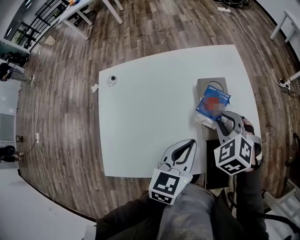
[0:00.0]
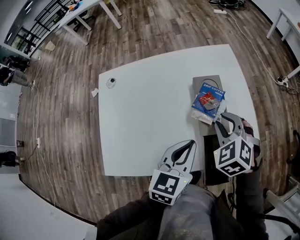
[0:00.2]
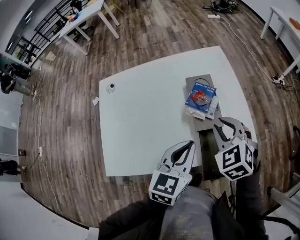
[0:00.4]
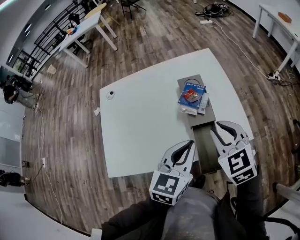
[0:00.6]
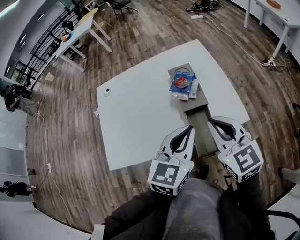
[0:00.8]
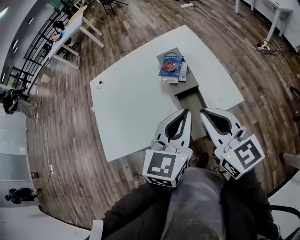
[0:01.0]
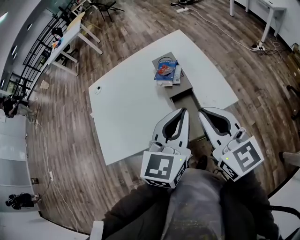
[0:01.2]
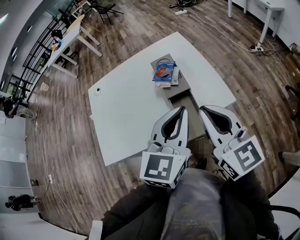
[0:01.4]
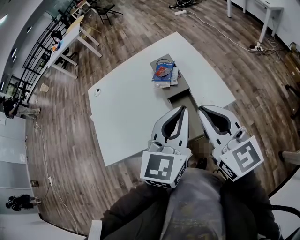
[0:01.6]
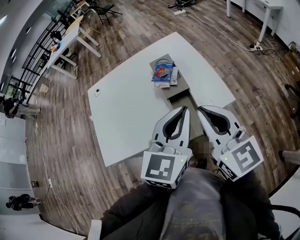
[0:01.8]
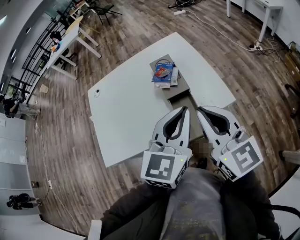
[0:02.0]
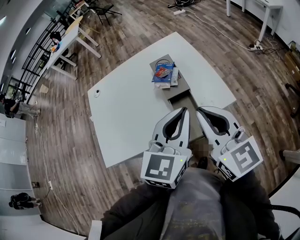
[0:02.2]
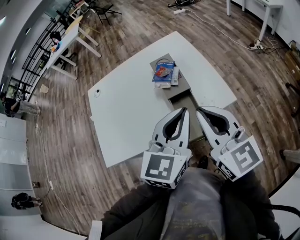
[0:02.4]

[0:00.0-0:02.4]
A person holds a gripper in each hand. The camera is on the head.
0:00.0 to 0:01.2: The right gripper moves backward and upward, about 25 cm, and points its fingers roughly 50 degrees further upward, while the left gripper is displaced backward, upward and to the right by some 20 cm, and swivels some 20 degrees.
0:01.2 to 0:02.4: The grippers move only a little.

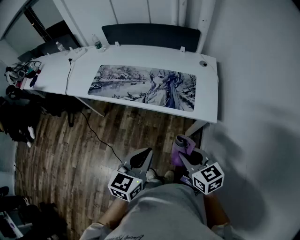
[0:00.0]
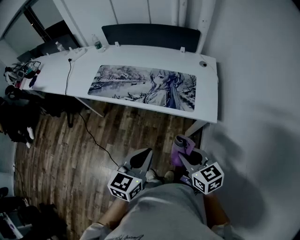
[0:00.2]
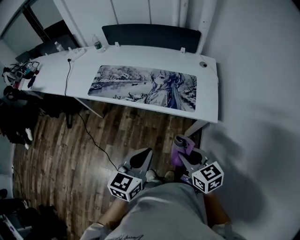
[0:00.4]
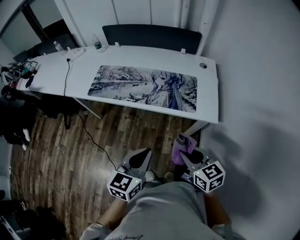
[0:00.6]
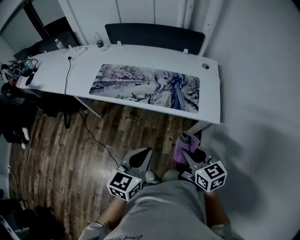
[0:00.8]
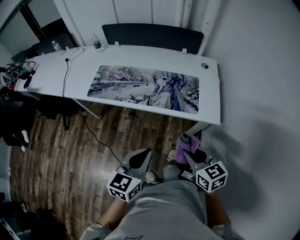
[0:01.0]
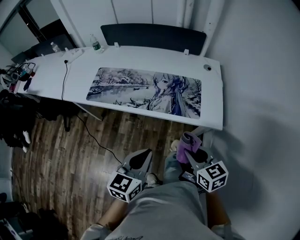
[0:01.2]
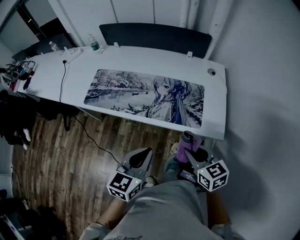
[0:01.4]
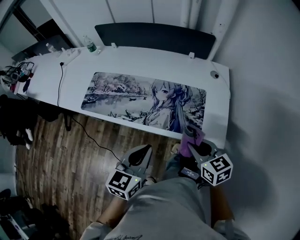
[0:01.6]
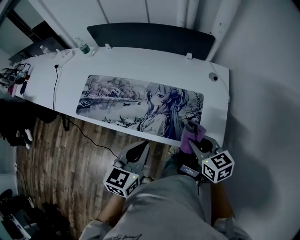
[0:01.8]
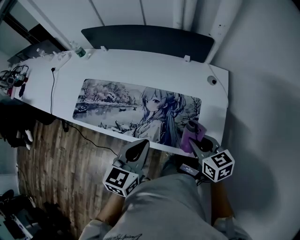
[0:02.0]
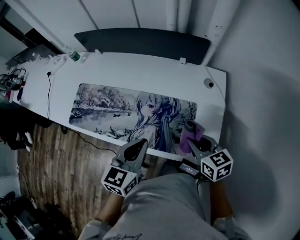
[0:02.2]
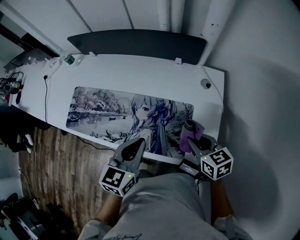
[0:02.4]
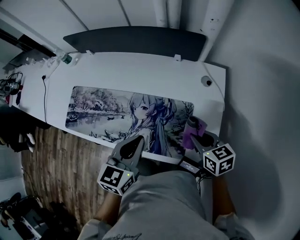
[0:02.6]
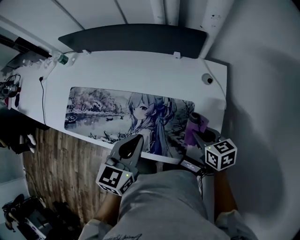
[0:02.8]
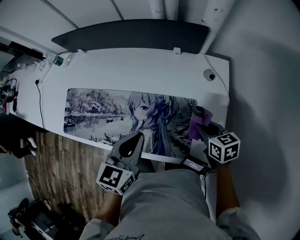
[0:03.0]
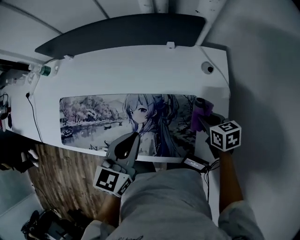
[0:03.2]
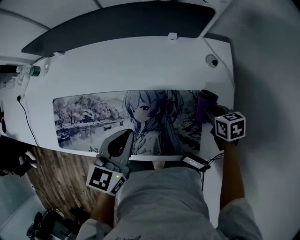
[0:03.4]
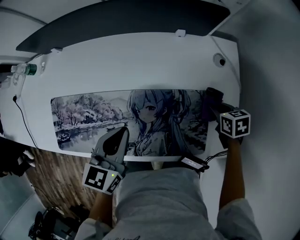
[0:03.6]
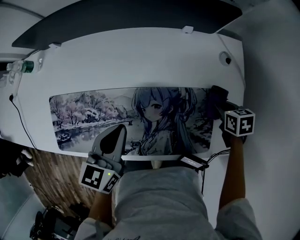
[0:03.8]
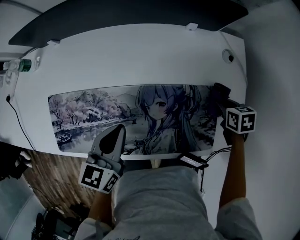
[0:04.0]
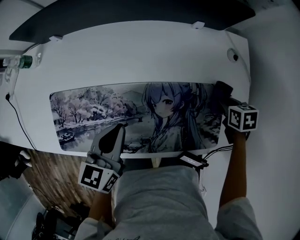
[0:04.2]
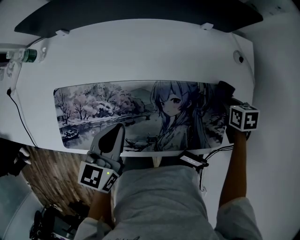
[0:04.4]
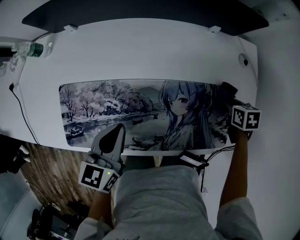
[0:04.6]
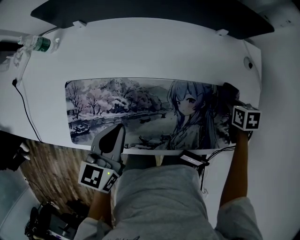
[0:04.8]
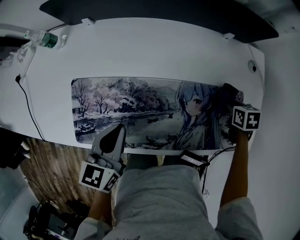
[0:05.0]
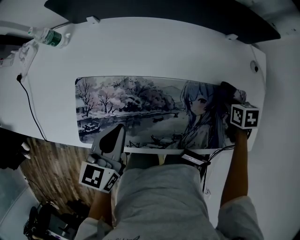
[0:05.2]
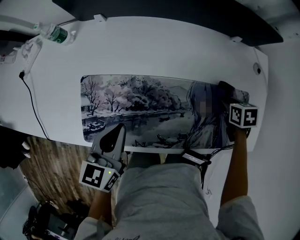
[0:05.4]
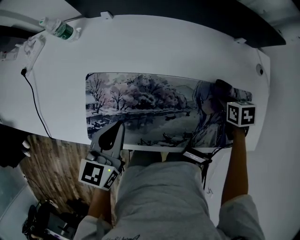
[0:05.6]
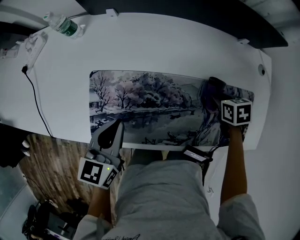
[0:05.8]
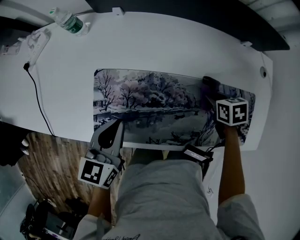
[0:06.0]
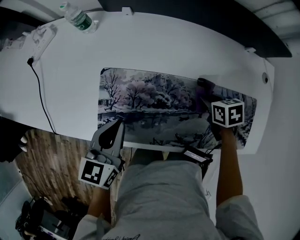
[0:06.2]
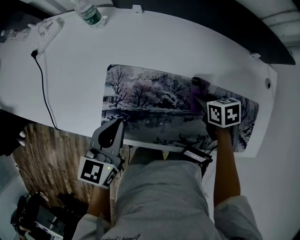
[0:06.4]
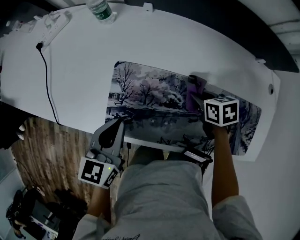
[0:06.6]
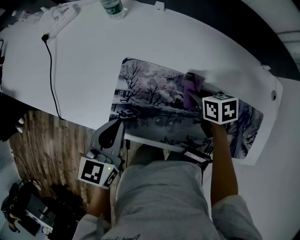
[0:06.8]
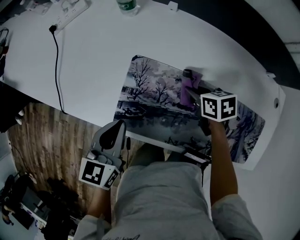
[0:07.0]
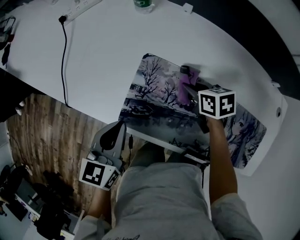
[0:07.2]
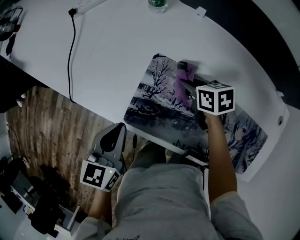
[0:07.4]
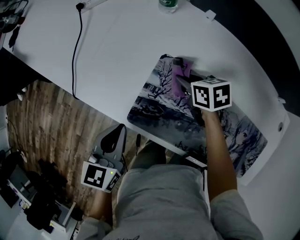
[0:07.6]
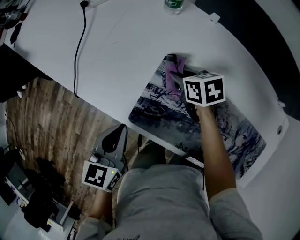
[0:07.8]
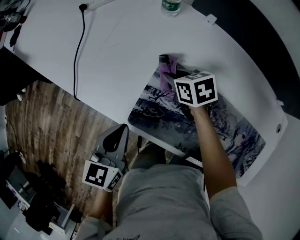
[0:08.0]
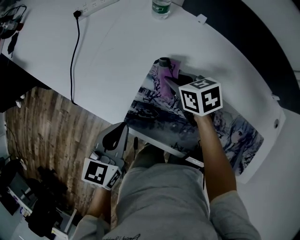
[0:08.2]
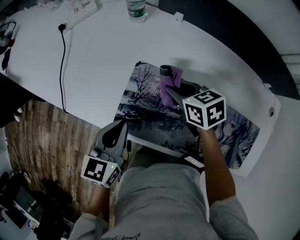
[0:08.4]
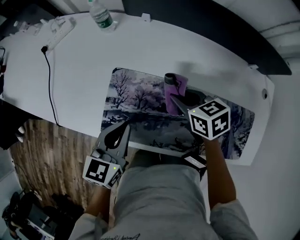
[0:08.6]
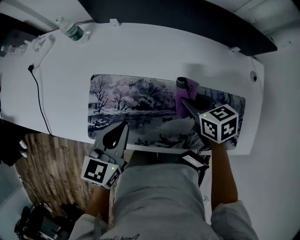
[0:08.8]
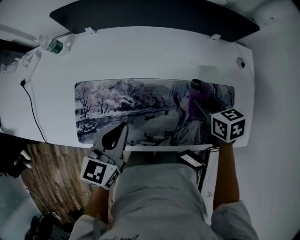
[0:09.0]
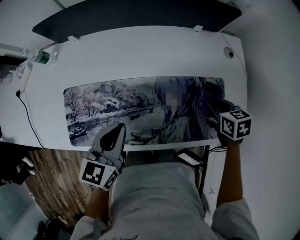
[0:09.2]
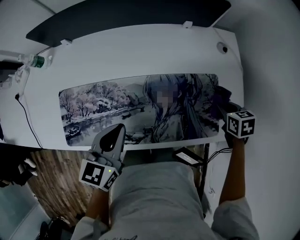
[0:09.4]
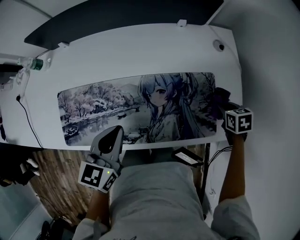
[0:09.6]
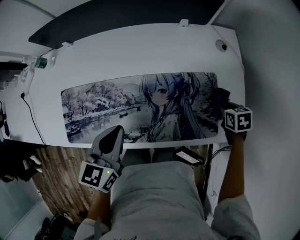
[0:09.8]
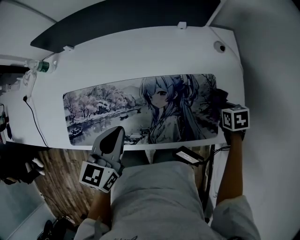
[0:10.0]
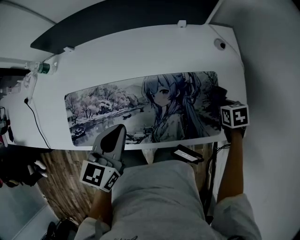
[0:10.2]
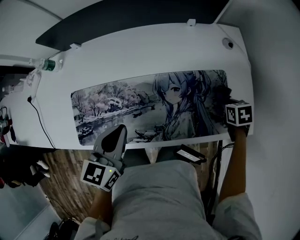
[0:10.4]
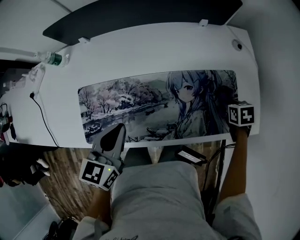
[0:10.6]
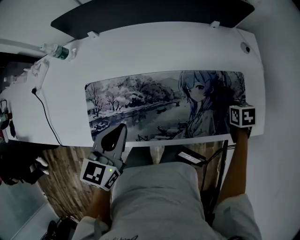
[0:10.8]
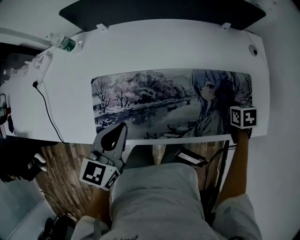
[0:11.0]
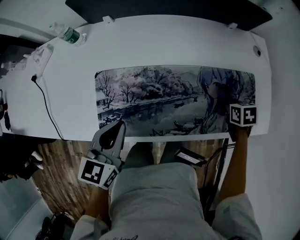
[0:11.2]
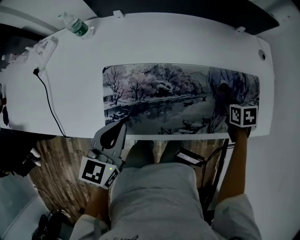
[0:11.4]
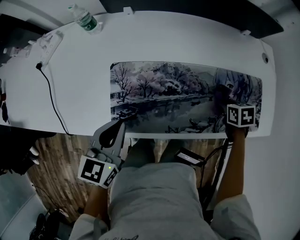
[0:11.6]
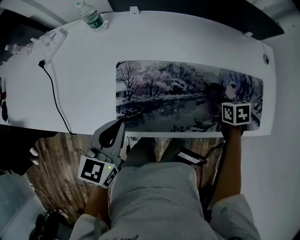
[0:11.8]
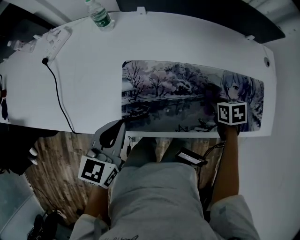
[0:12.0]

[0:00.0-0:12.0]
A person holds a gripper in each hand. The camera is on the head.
0:00.0 to 0:01.6: The two grippers go some 20 cm forward.
0:01.6 to 0:03.0: The left gripper shifts some 25 cm forward and to the right. The right gripper goes about 25 cm forward, to the right and downward, and turns by about 20 degrees.
0:03.0 to 0:04.4: The right gripper goes roughly 10 cm downward and forward, and swivels roughly 30 degrees; the left gripper shifts approximately 20 cm to the left.
0:04.4 to 0:06.0: Both grippers travel together to the left, approximately 25 cm.
0:06.0 to 0:07.6: The right gripper changes place by roughly 35 cm, and turns by approximately 30 degrees. The left gripper shifts by roughly 20 cm, and rotates about 20 degrees.
0:07.6 to 0:09.0: The left gripper shifts by roughly 30 cm, and changes its angle by about 30 degrees. Meanwhile the right gripper shifts by roughly 40 cm, and changes its angle by roughly 30 degrees.
0:09.0 to 0:10.4: The left gripper moves to the right, about 10 cm; the right gripper is displaced to the right and downward by some 25 cm, and rotates some 20 degrees.
0:10.4 to 0:12.0: The two grippers go about 35 cm to the left.

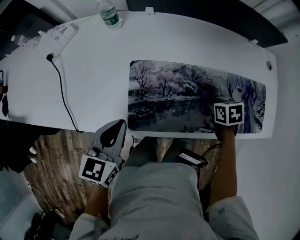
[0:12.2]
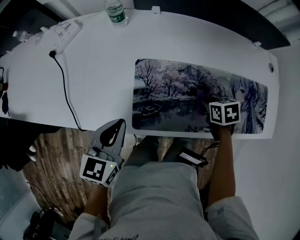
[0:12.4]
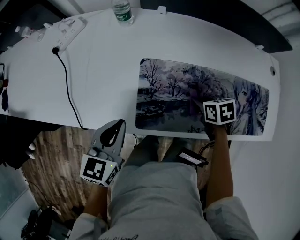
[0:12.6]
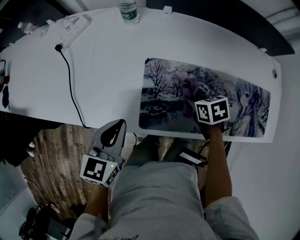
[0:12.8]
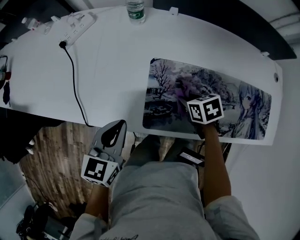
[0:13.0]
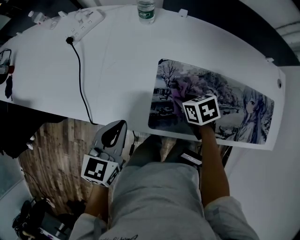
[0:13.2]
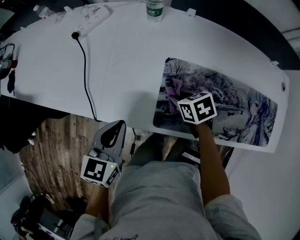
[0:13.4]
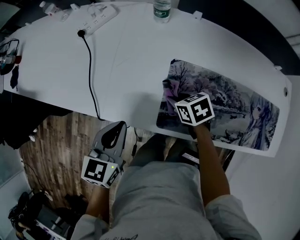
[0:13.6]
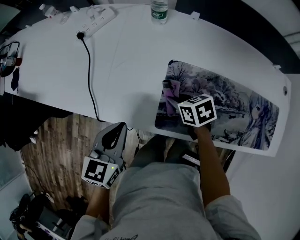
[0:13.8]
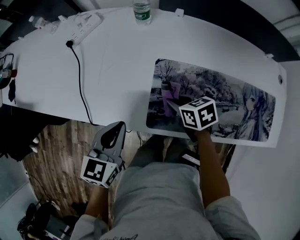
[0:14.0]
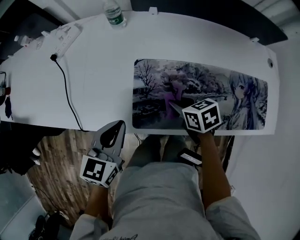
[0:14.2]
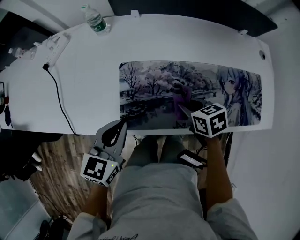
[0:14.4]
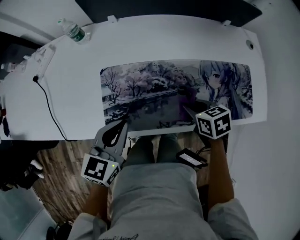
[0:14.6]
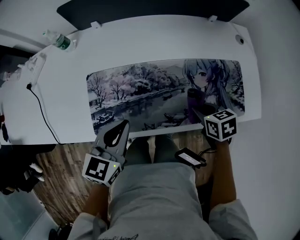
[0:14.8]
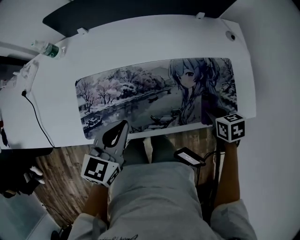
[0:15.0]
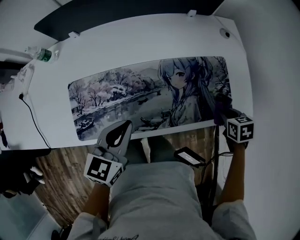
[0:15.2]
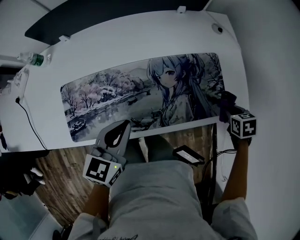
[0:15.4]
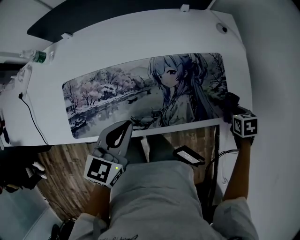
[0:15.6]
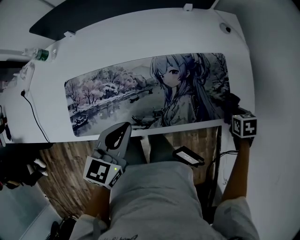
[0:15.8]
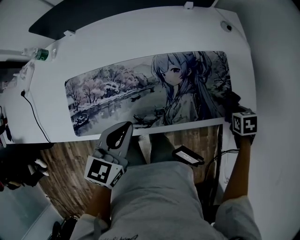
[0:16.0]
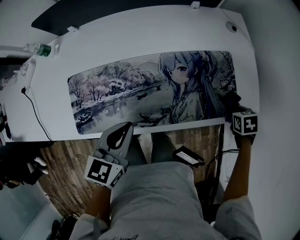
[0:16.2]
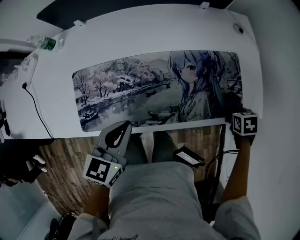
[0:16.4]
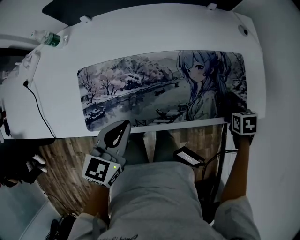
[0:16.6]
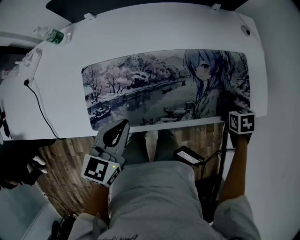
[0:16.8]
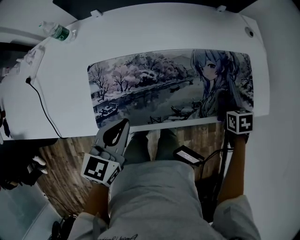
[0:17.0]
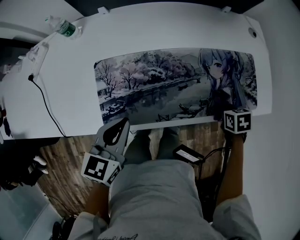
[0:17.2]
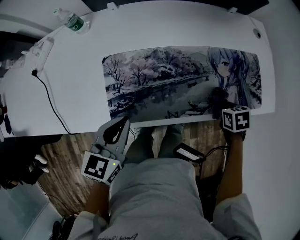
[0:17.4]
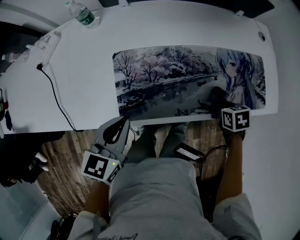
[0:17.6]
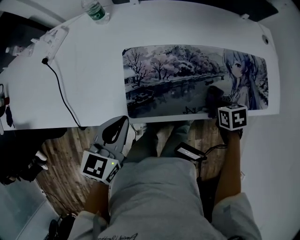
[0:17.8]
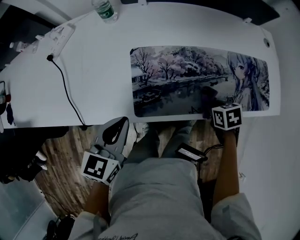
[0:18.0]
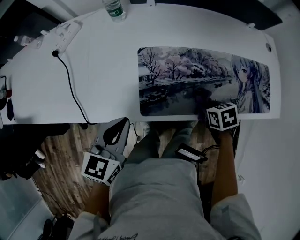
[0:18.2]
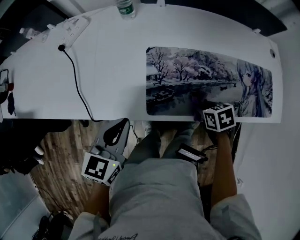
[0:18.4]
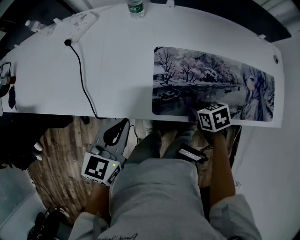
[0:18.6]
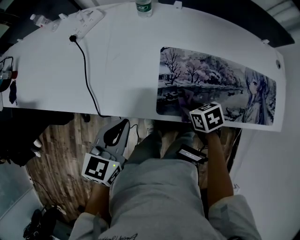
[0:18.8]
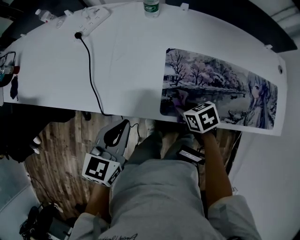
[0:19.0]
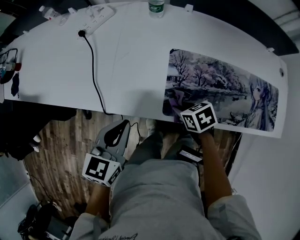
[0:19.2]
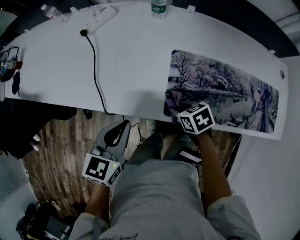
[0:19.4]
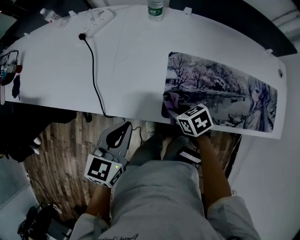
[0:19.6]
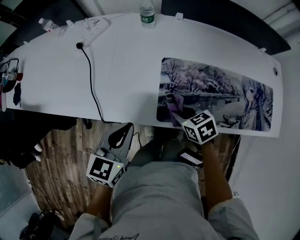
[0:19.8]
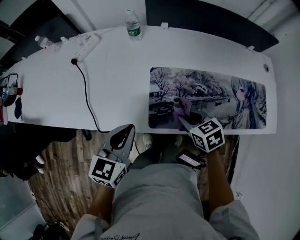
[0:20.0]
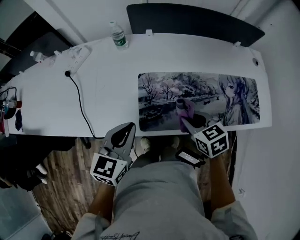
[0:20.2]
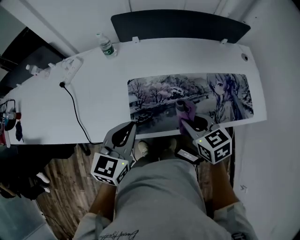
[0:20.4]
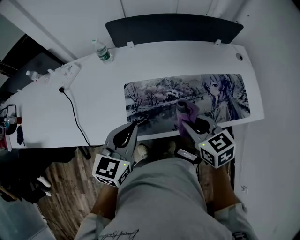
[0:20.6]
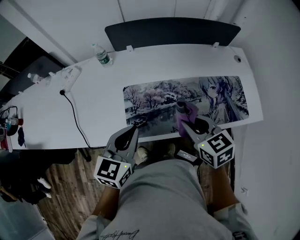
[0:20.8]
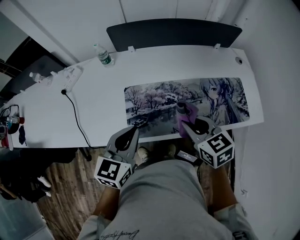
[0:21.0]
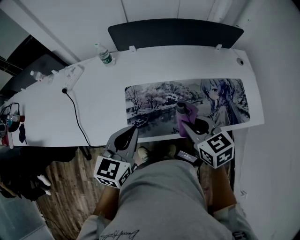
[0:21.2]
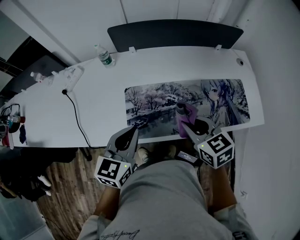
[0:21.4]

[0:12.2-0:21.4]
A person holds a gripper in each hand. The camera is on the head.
0:12.2 to 0:13.8: The left gripper goes roughly 10 cm to the left. The right gripper shifts some 30 cm to the left, and changes its angle by roughly 30 degrees.
0:13.8 to 0:15.2: The pair of grippers is taken approximately 50 cm. The right gripper rotates approximately 40 degrees; the left gripper rotates some 30 degrees.
0:15.2 to 0:16.8: The right gripper moves roughly 10 cm. Meanwhile the left gripper changes place by approximately 10 cm.
0:16.8 to 0:18.4: The right gripper moves about 40 cm, and swivels roughly 20 degrees. Meanwhile the left gripper shifts by some 25 cm.
0:18.4 to 0:19.8: The right gripper heads to the left and forward, covering roughly 15 cm, and rotates roughly 20 degrees.
0:19.8 to 0:21.4: The left gripper heads to the right and upward, covering about 20 cm, while the right gripper heads upward and to the right, covering roughly 25 cm, and swivels some 30 degrees.
